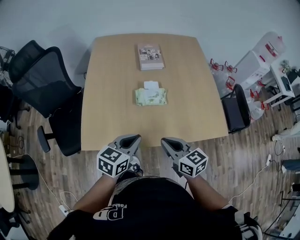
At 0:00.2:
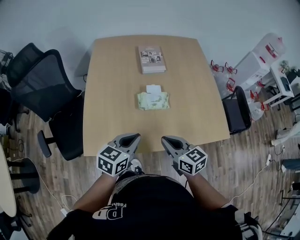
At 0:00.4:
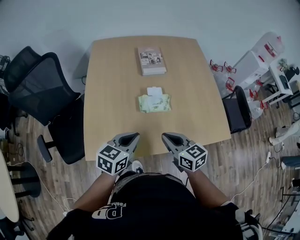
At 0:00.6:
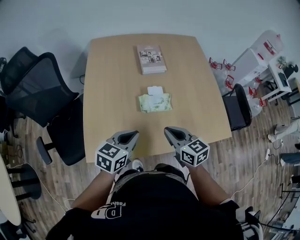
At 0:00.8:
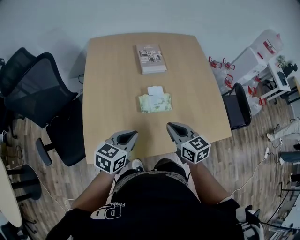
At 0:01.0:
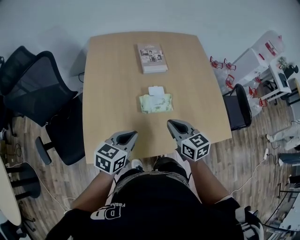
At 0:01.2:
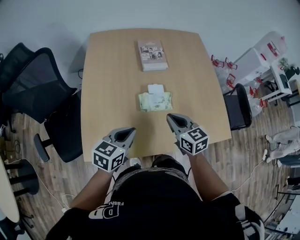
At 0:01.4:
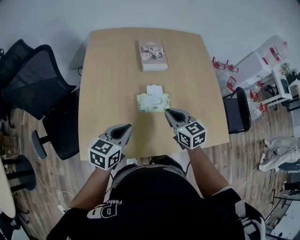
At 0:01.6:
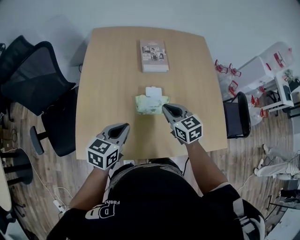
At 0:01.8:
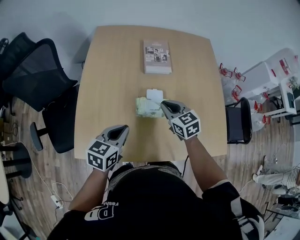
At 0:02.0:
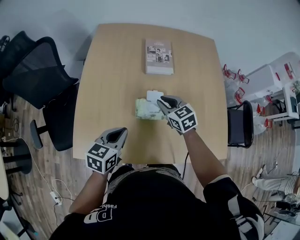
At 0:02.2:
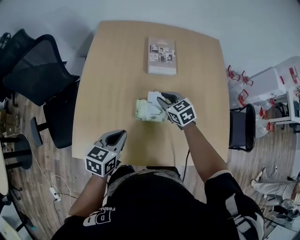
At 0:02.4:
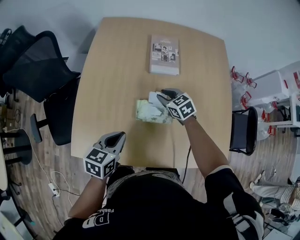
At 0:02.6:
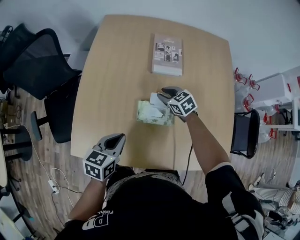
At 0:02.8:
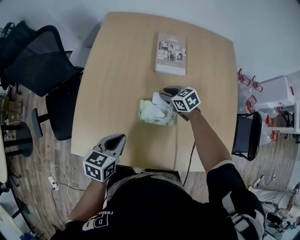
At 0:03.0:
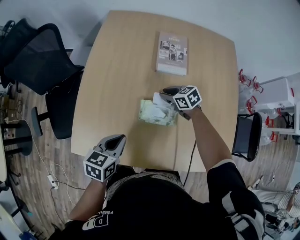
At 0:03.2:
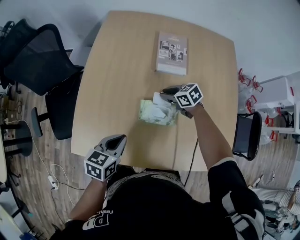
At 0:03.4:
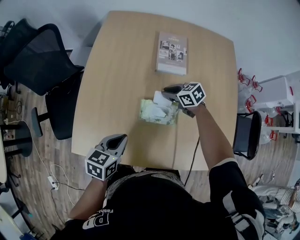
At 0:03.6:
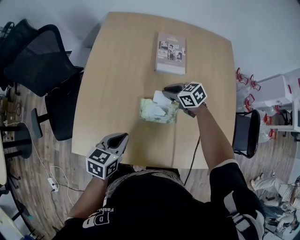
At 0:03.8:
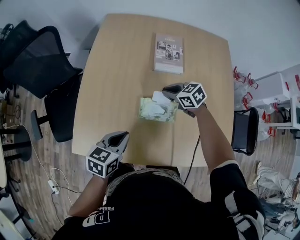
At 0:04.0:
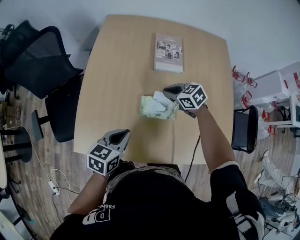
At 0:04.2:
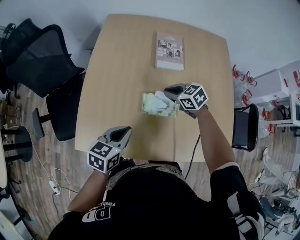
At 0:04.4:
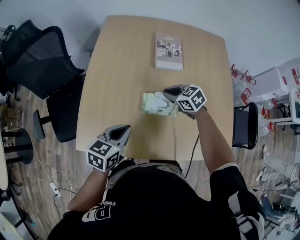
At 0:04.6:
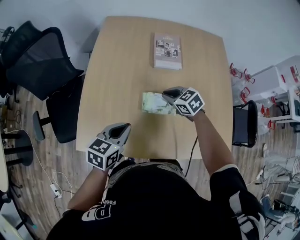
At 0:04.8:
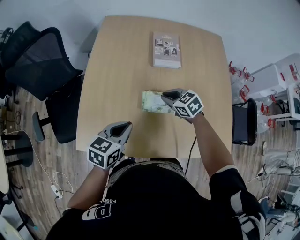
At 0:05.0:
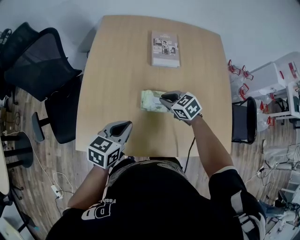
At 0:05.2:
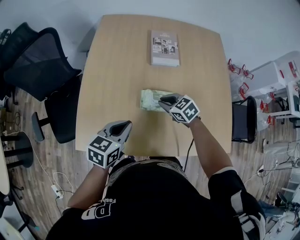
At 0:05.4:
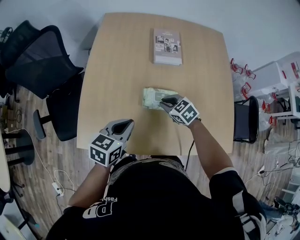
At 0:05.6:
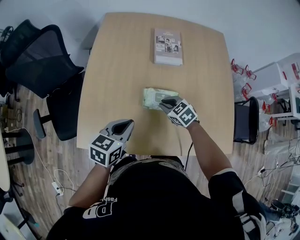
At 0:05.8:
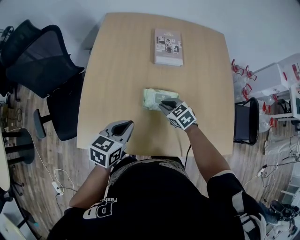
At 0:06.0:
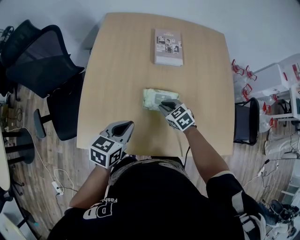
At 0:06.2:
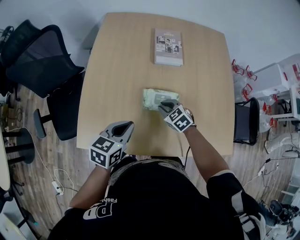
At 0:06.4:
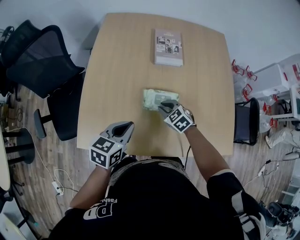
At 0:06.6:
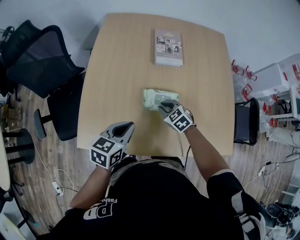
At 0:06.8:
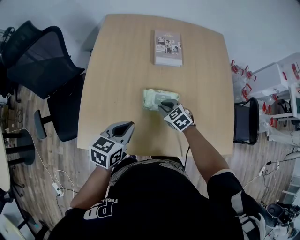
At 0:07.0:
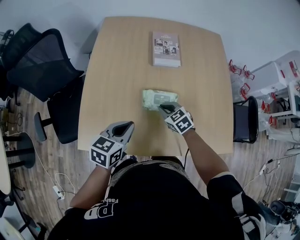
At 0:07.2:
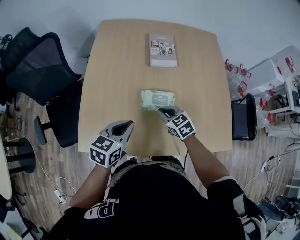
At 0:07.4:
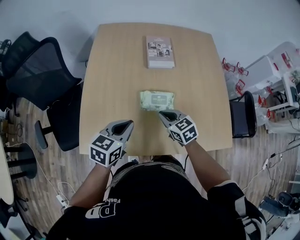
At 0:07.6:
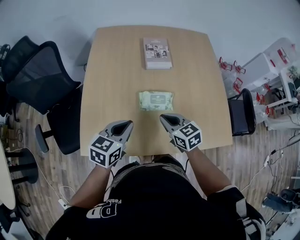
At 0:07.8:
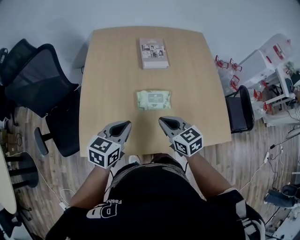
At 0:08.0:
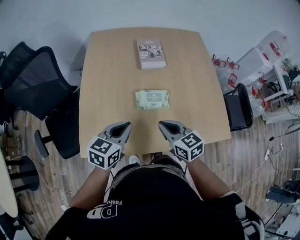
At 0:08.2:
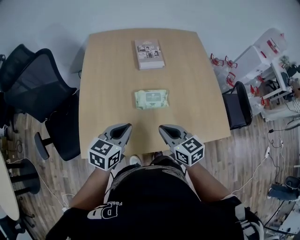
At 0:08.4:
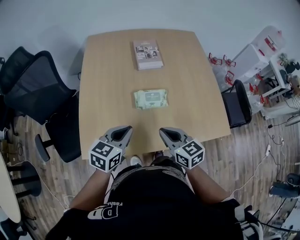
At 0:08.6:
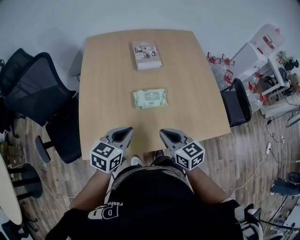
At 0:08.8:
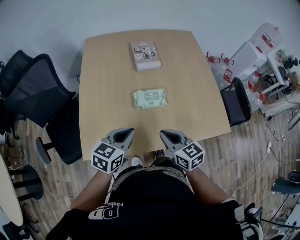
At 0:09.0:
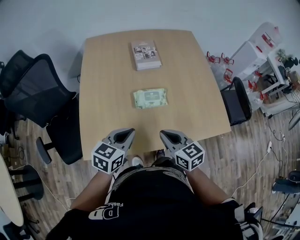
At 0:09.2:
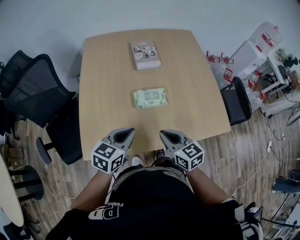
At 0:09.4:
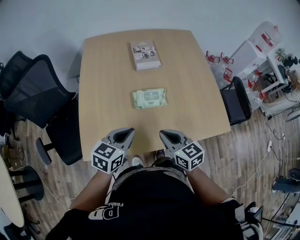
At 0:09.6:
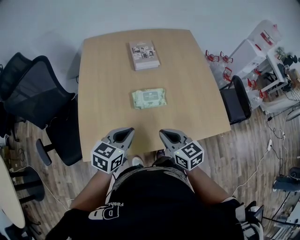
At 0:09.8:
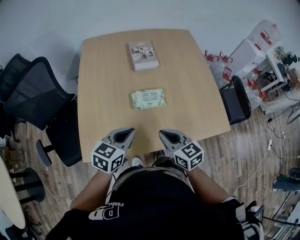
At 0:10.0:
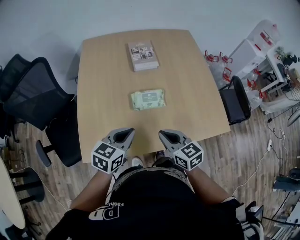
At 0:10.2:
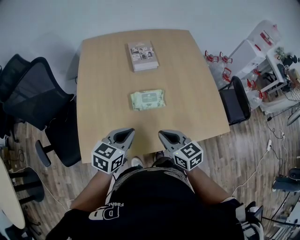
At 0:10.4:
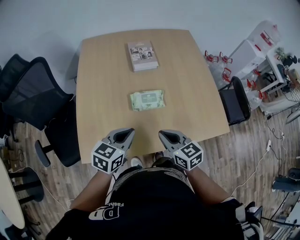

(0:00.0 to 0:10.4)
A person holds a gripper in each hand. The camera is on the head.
0:00.0 - 0:01.4: The right gripper travels forward by some 20 cm. The left gripper heads forward and to the left, covering roughly 15 cm.
0:01.4 - 0:03.0: The right gripper shifts by about 25 cm, rotates some 40 degrees, and opens up; the left gripper heads downward, covering roughly 5 cm, and swivels approximately 20 degrees.
0:03.0 - 0:04.4: The right gripper travels upward and backward by about 10 cm.
0:04.4 - 0:06.0: The right gripper shifts approximately 10 cm backward and downward.
0:06.0 - 0:07.4: The right gripper moves upward and backward, some 10 cm.
0:07.4 - 0:09.0: The right gripper heads backward and upward, covering roughly 15 cm, and changes its angle by roughly 20 degrees. Meanwhile the left gripper goes roughly 5 cm backward.
0:09.0 - 0:10.4: There are only small adjustments of the grippers.

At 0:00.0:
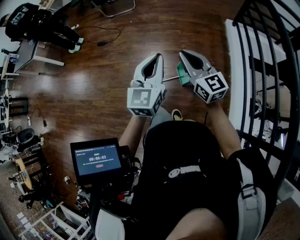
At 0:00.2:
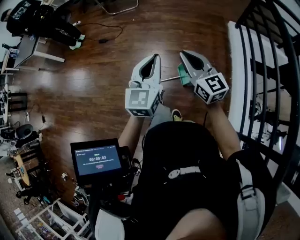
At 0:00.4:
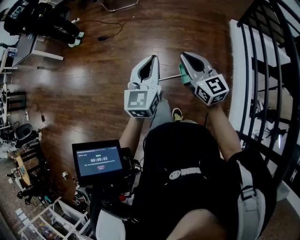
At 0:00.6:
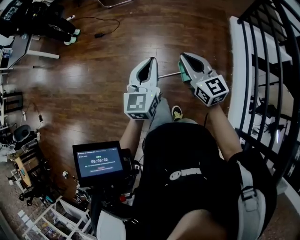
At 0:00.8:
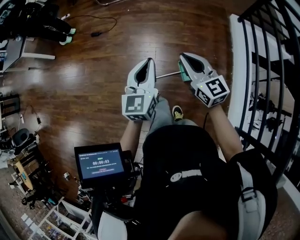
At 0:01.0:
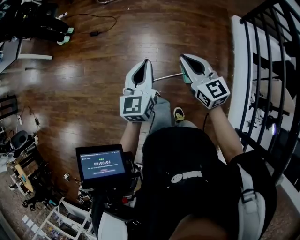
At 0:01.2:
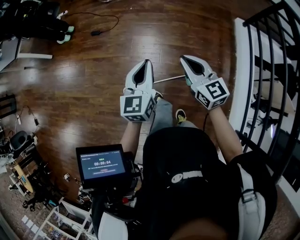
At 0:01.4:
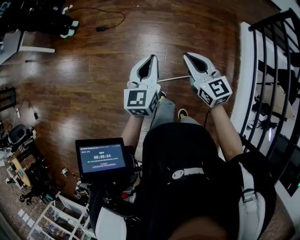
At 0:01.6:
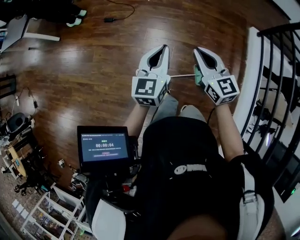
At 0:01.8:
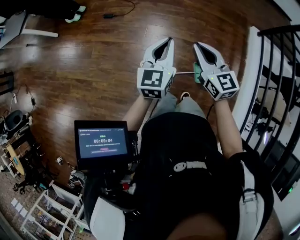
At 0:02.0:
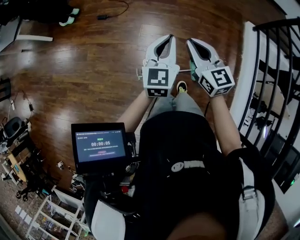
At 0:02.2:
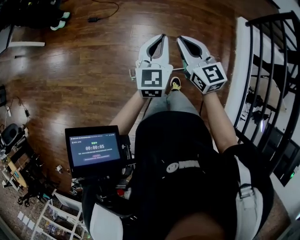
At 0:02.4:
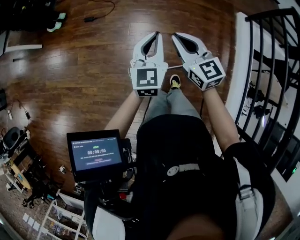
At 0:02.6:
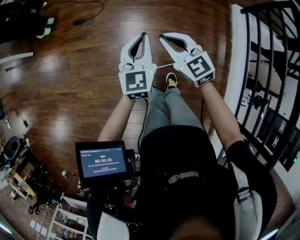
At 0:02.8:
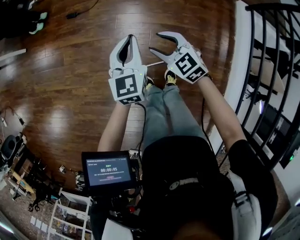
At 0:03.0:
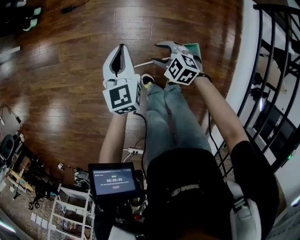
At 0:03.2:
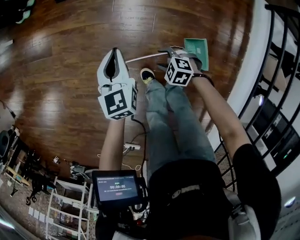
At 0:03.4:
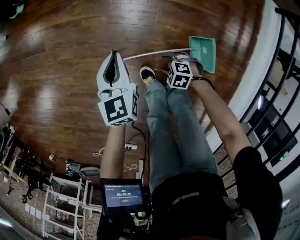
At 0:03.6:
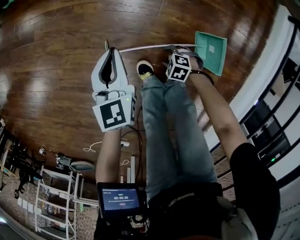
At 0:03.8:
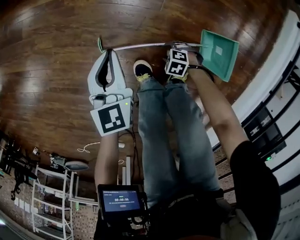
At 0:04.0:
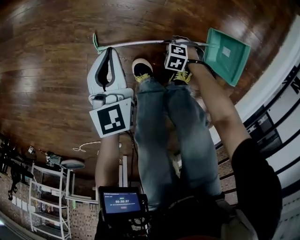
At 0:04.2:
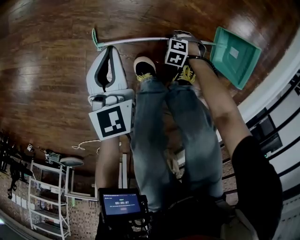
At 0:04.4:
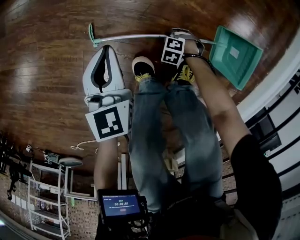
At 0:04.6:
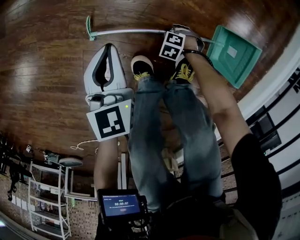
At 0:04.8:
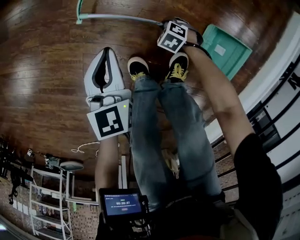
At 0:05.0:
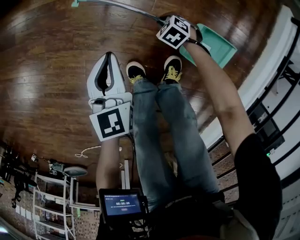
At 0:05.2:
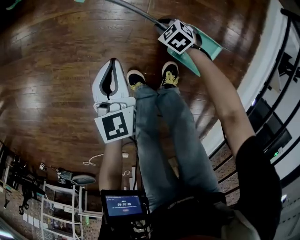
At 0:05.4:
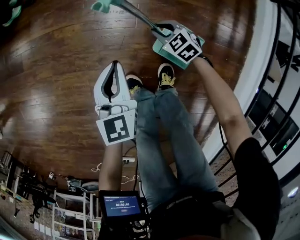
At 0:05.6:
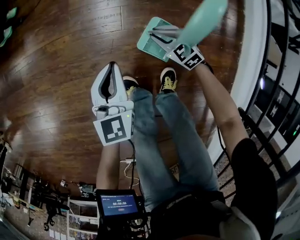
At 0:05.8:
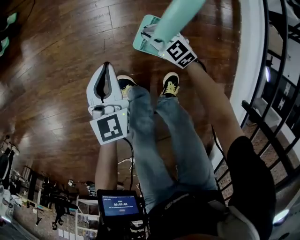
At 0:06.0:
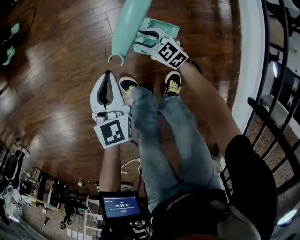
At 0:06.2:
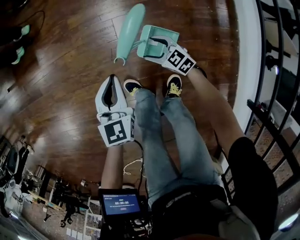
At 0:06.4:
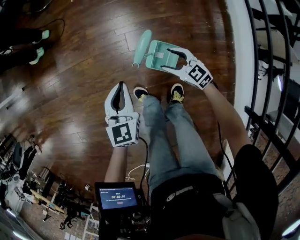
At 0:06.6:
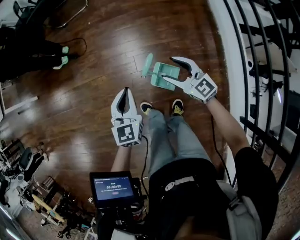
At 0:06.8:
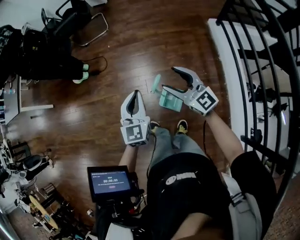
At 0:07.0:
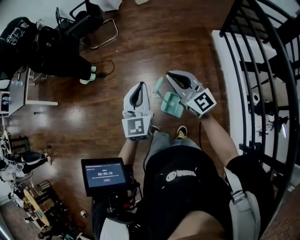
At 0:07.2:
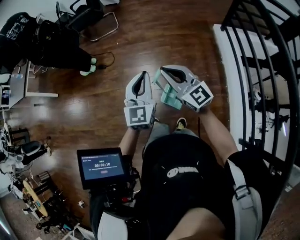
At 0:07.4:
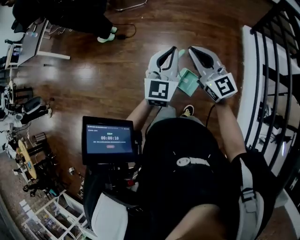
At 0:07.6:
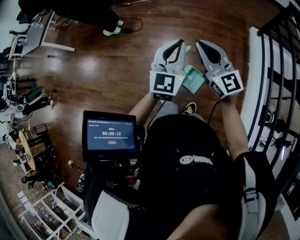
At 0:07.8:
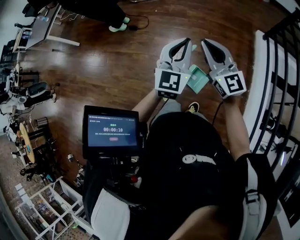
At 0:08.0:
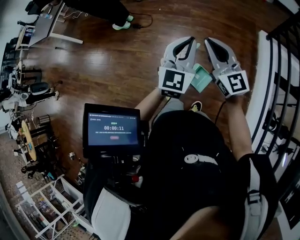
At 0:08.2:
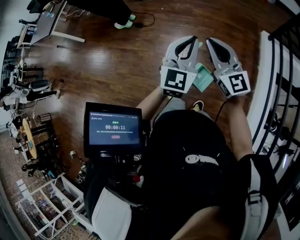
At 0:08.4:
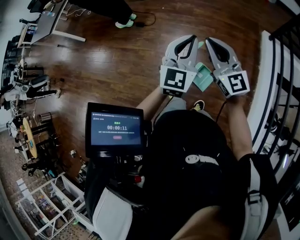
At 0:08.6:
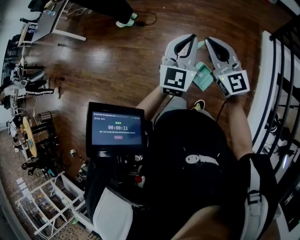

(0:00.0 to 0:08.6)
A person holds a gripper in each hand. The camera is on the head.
0:00.0 - 0:01.4: The grippers both shift forward and to the left by about 25 cm.
0:01.4 - 0:02.8: The two grippers go roughly 20 cm downward and forward. The right gripper changes its angle by roughly 30 degrees, and opens.
0:02.8 - 0:04.4: The left gripper shifts about 50 cm downward, and rotates roughly 20 degrees. The right gripper shifts some 80 cm downward, tilts its fingers about 40 degrees downward, and closes its fingers.
0:04.4 - 0:05.8: The right gripper travels upward by some 35 cm, and tips its fingers upward by some 50 degrees. The left gripper moves approximately 25 cm, and turns by roughly 30 degrees.
0:05.8 - 0:07.2: The grippers both shift upward by some 60 cm. The left gripper swivels about 30 degrees. The right gripper tilts its fingers some 40 degrees upward, and opens, then closes once more.
0:07.2 - 0:08.6: The grippers make only small movements.

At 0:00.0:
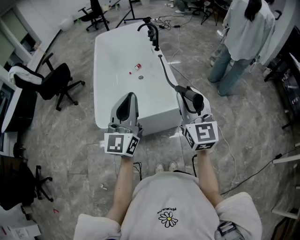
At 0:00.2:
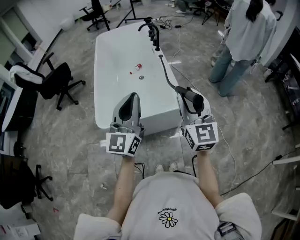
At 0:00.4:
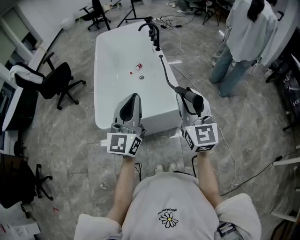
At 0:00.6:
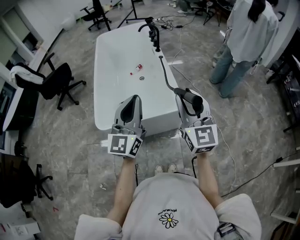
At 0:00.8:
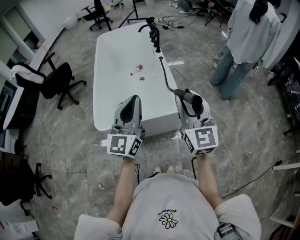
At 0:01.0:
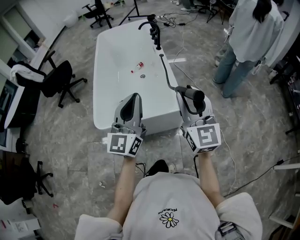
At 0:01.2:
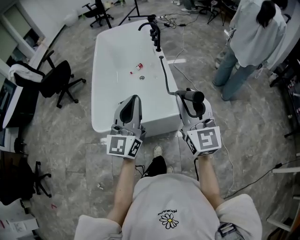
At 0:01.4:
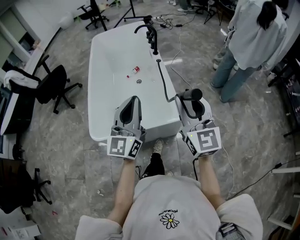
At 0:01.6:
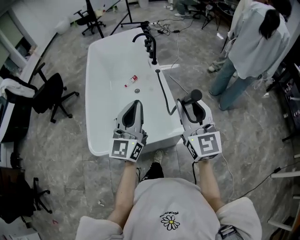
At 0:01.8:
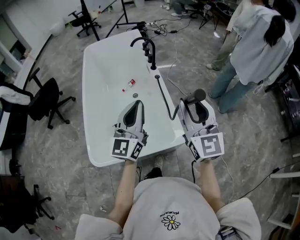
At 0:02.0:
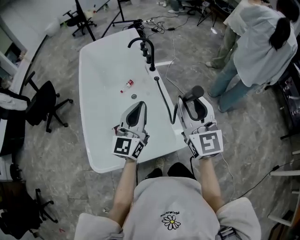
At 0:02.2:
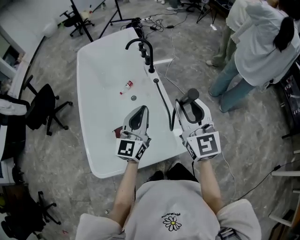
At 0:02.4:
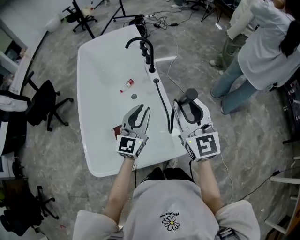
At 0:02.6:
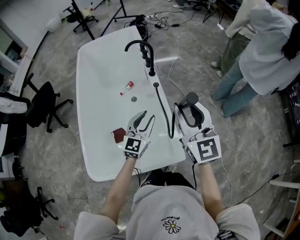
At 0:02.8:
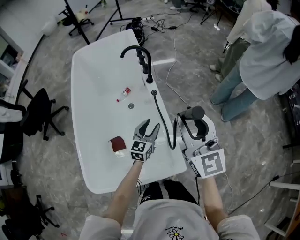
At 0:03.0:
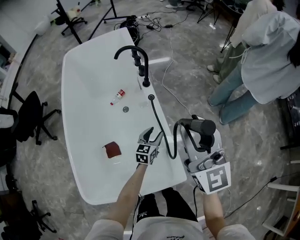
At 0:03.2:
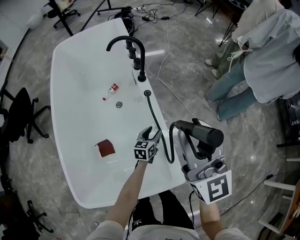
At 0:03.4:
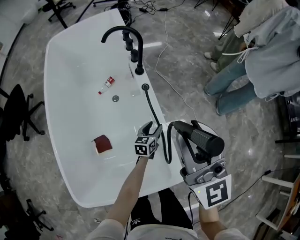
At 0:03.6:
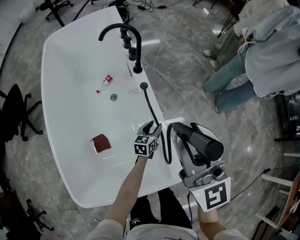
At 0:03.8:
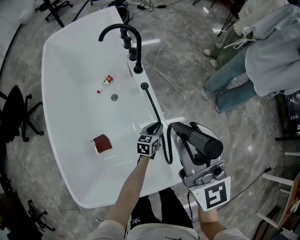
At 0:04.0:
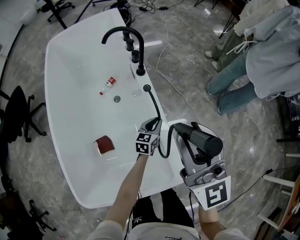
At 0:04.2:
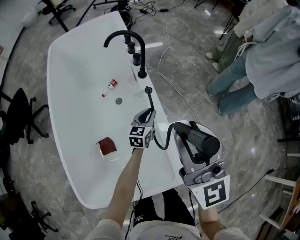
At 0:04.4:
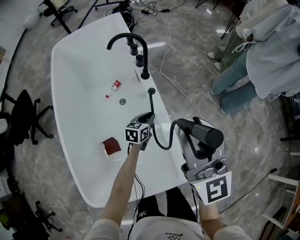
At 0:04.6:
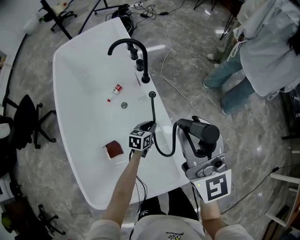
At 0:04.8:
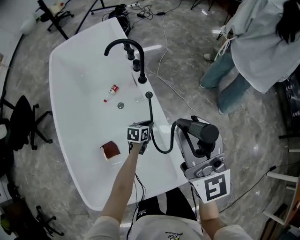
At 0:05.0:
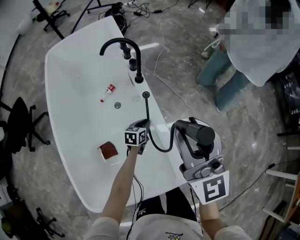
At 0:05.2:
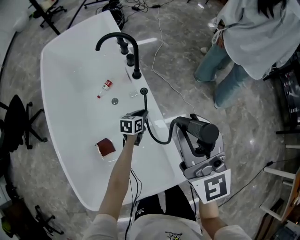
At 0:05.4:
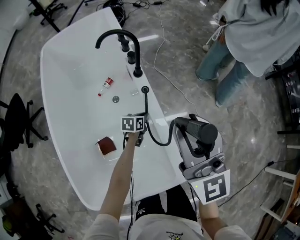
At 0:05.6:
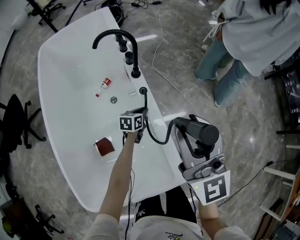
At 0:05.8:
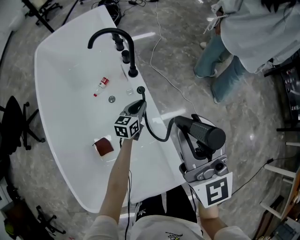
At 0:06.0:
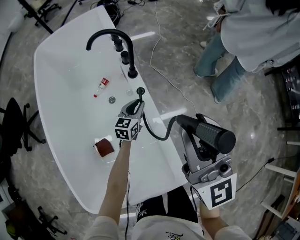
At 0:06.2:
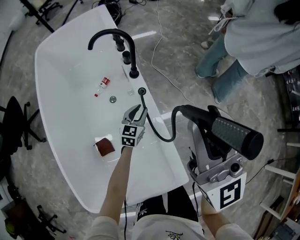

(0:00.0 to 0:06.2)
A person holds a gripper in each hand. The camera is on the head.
0:00.0 - 0:01.6: The grippers both shift forward by approximately 20 cm.
0:01.6 - 0:03.2: The right gripper is displaced forward by some 30 cm. Meanwhile the left gripper travels downward and forward by some 60 cm, angles its fingers downward, by approximately 40 degrees, and opens.
0:03.2 - 0:04.6: The left gripper closes.
0:04.6 - 0:06.2: The two grippers go roughly 10 cm forward. The left gripper turns by roughly 20 degrees.
